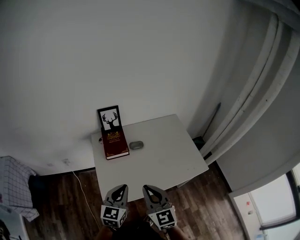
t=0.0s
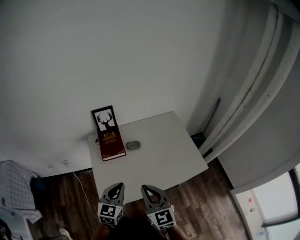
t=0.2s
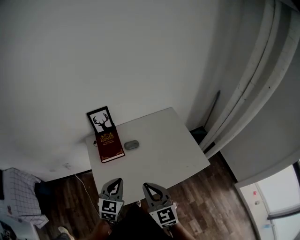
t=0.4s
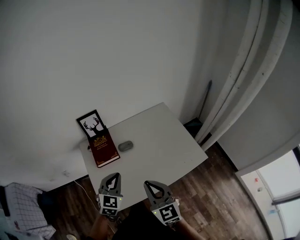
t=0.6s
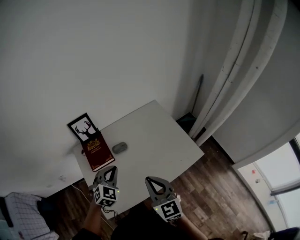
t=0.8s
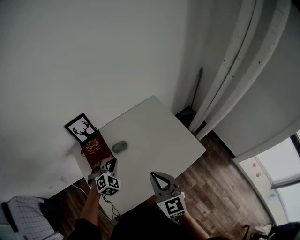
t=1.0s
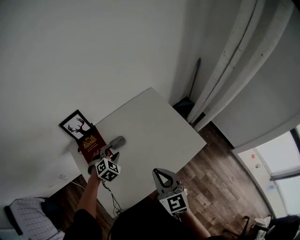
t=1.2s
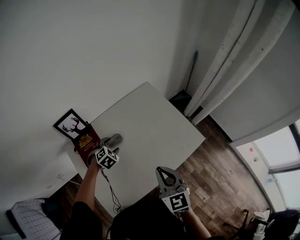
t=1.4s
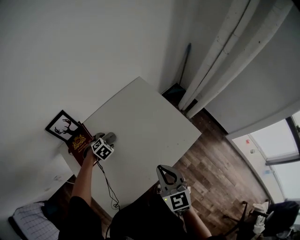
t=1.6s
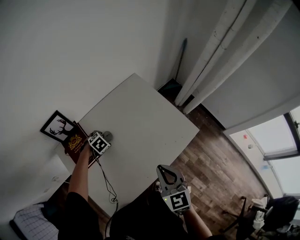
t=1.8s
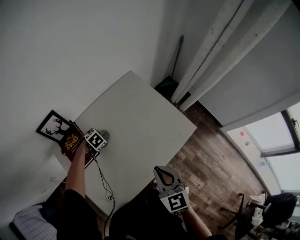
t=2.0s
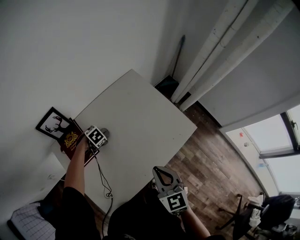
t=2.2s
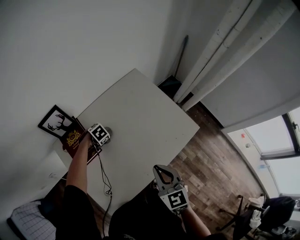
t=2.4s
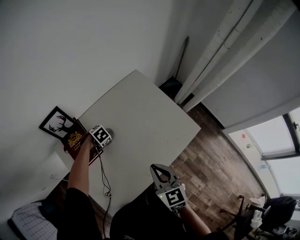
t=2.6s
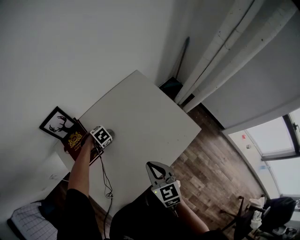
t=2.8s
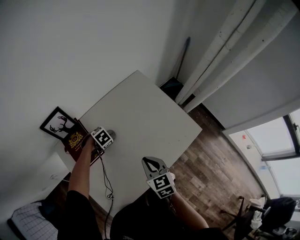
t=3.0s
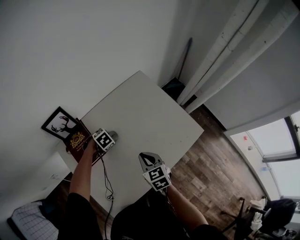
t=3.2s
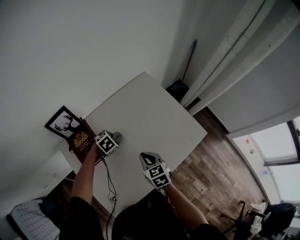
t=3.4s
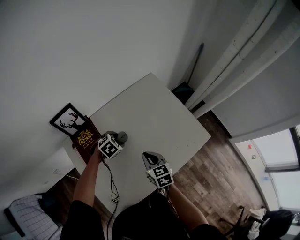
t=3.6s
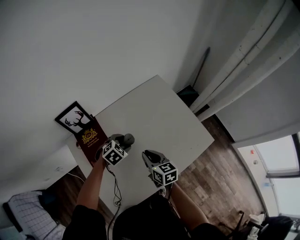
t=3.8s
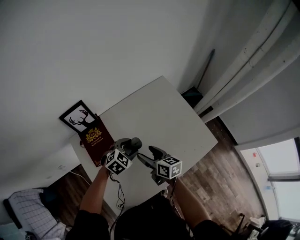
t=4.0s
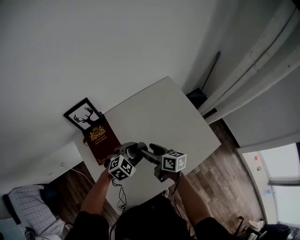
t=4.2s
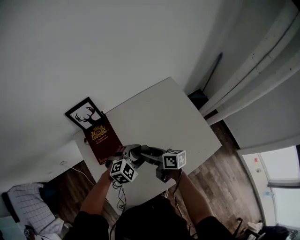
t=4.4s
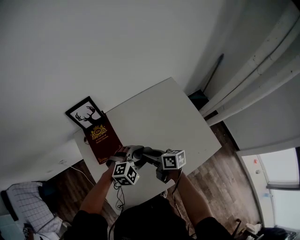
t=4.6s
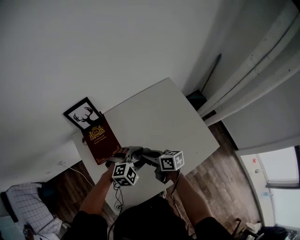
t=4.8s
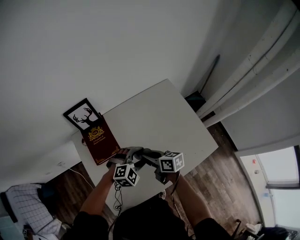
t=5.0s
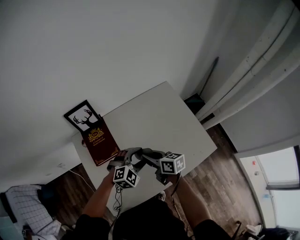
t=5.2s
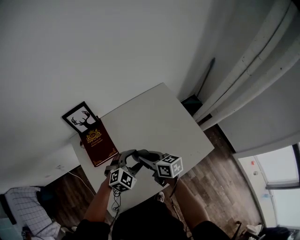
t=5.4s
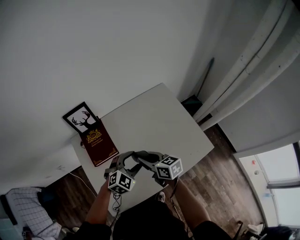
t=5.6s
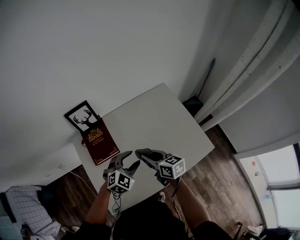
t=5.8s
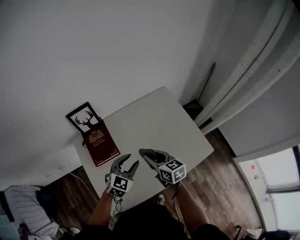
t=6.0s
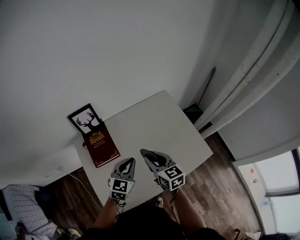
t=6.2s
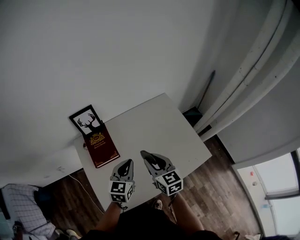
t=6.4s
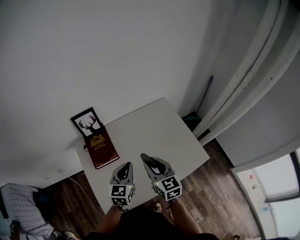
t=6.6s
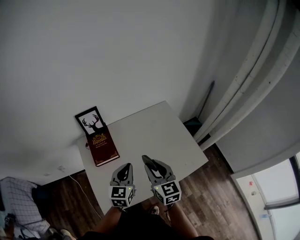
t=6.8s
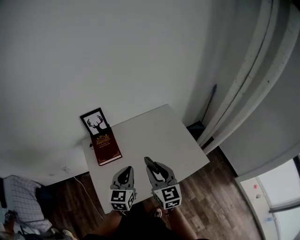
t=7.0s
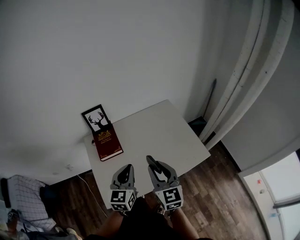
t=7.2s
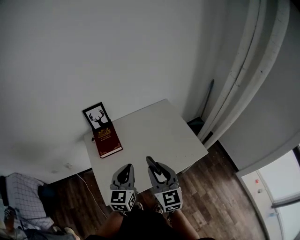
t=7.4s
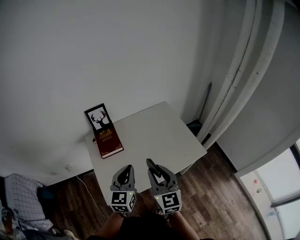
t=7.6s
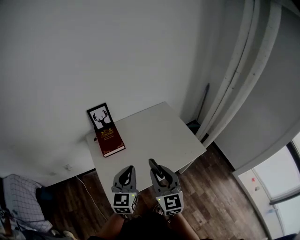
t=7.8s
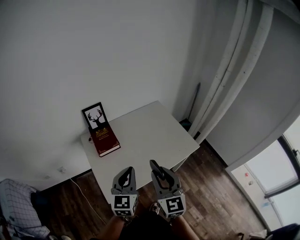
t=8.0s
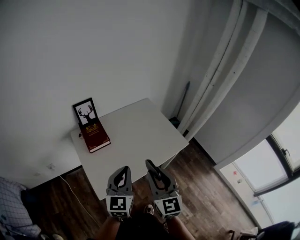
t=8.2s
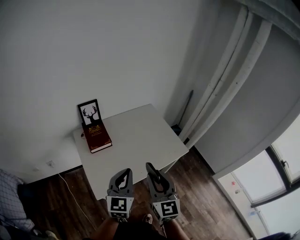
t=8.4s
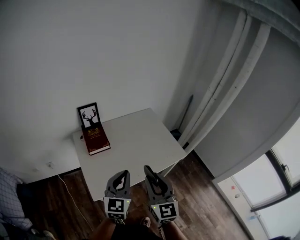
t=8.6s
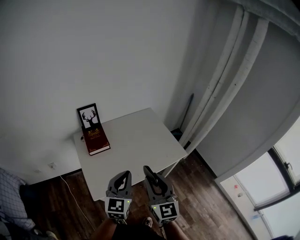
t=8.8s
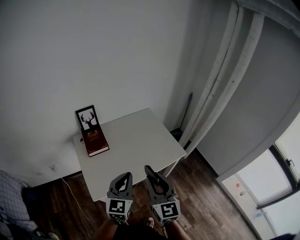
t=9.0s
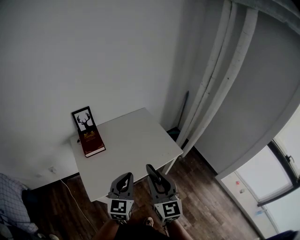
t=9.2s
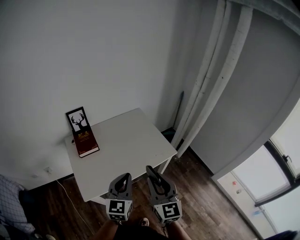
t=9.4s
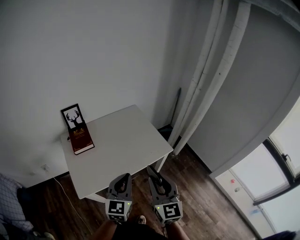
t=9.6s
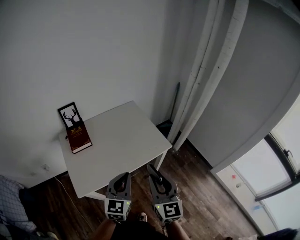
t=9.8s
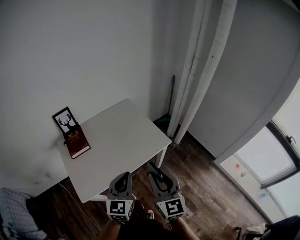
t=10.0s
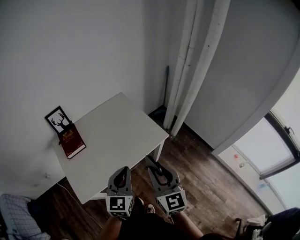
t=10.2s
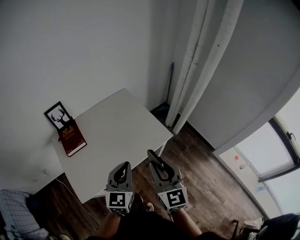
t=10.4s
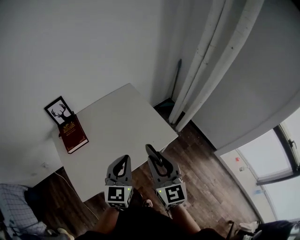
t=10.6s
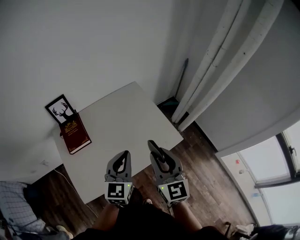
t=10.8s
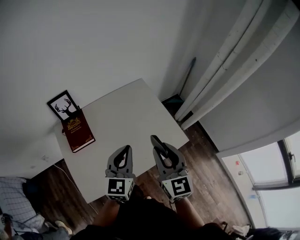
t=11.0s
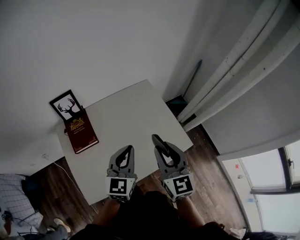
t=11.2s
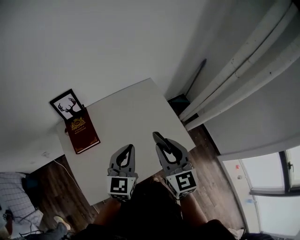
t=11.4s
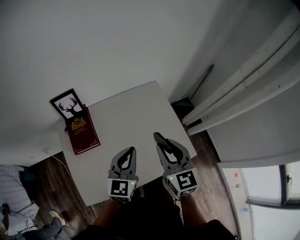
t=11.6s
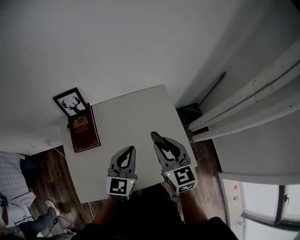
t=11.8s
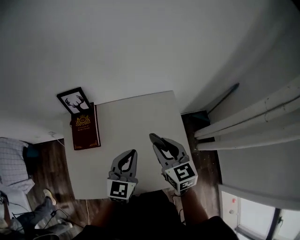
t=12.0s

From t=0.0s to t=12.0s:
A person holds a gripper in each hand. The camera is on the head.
From t=0.0s to t=1.6s: The left gripper is displaced forward and downward by roughly 40 cm, tilts its fingers some 50 degrees downward, and opens its fingers; the right gripper shifts about 20 cm to the right, forward and downward, and changes its angle by some 30 degrees.
From t=1.6s to t=3.0s: The right gripper heads downward, covering roughly 10 cm.
From t=3.0s to t=4.4s: The left gripper travels upward by roughly 15 cm, and tilts its fingers roughly 40 degrees upward, while the right gripper shifts by about 10 cm, turns by approximately 50 degrees, and opens its fingers.
From t=4.4s to t=6.0s: The grippers both shift upward by some 5 cm. The left gripper changes its angle by some 30 degrees; the right gripper rotates roughly 30 degrees, and closes its fingers.
From t=6.0s to t=7.6s: The two grippers go approximately 25 cm backward and upward. The right gripper turns by about 40 degrees; the left gripper swivels about 40 degrees, and closes its fingers.
From t=7.6s to t=9.0s: The right gripper goes about 15 cm backward, upward and to the right; the left gripper moves backward and to the right, about 10 cm.
From t=9.0s to t=10.4s: Both grippers travel together to the right and forward, roughly 15 cm.
From t=10.4s to t=12.0s: The right gripper ends up about 40 cm from where it was, and rotates about 40 degrees, while the left gripper shifts by about 30 cm.

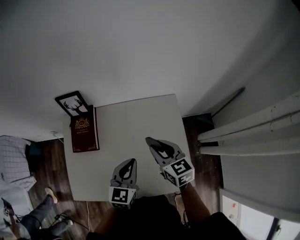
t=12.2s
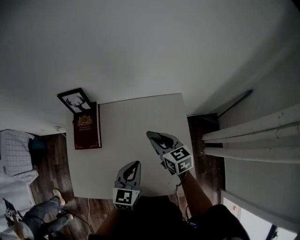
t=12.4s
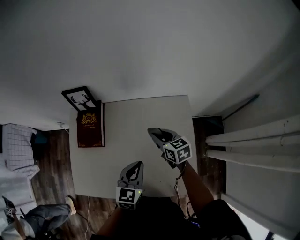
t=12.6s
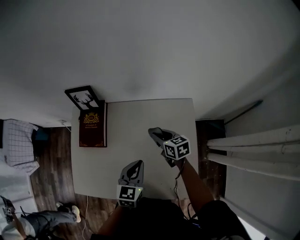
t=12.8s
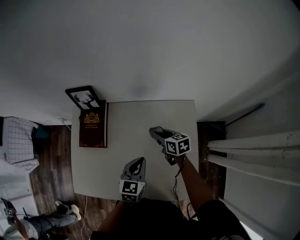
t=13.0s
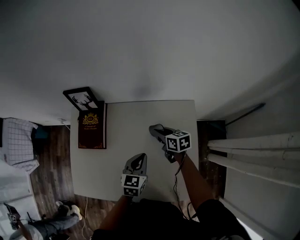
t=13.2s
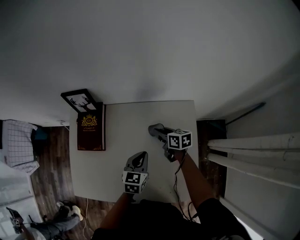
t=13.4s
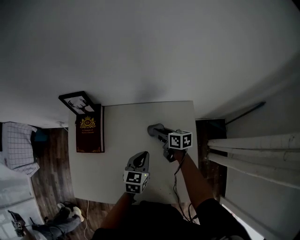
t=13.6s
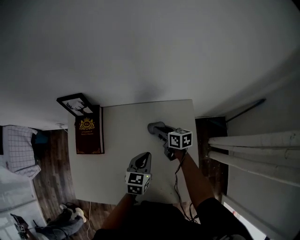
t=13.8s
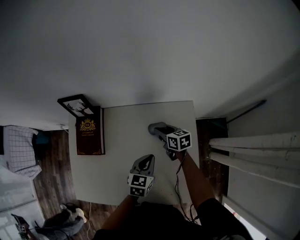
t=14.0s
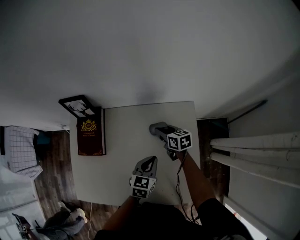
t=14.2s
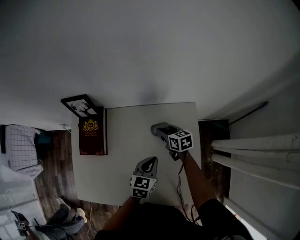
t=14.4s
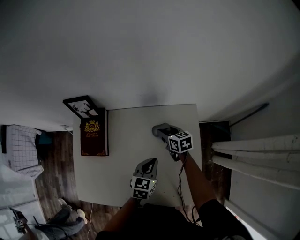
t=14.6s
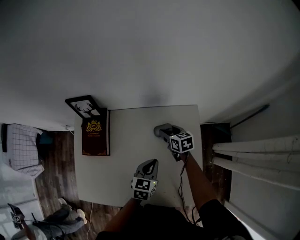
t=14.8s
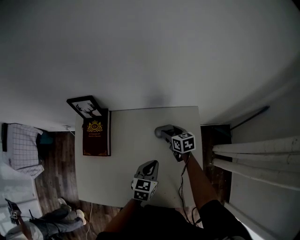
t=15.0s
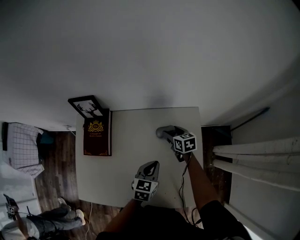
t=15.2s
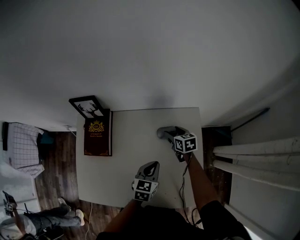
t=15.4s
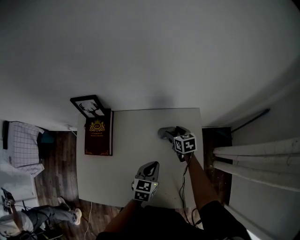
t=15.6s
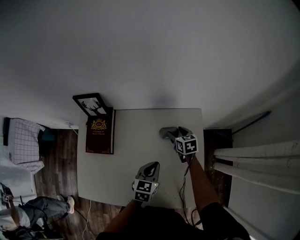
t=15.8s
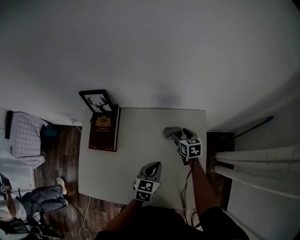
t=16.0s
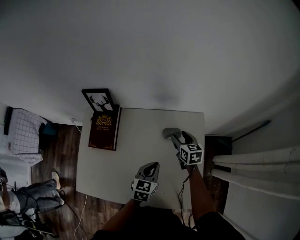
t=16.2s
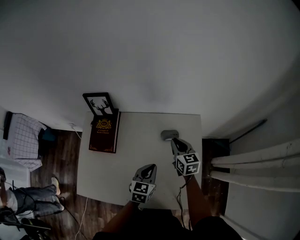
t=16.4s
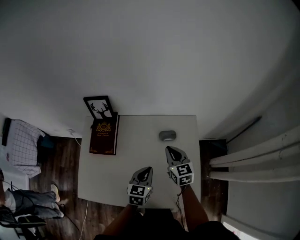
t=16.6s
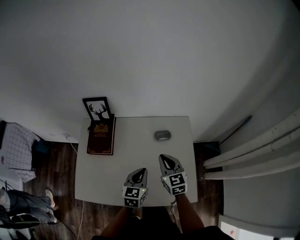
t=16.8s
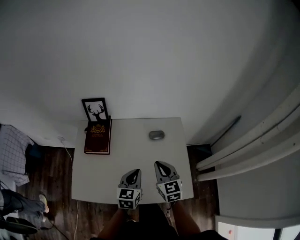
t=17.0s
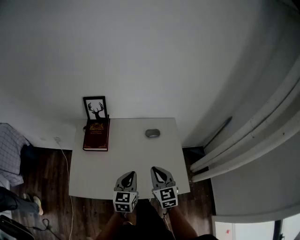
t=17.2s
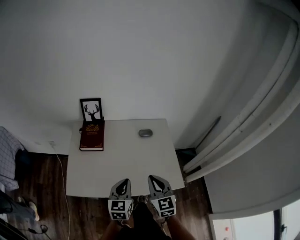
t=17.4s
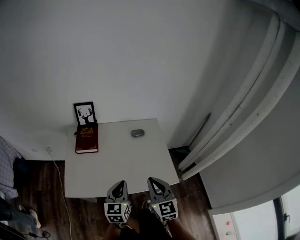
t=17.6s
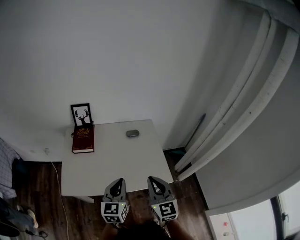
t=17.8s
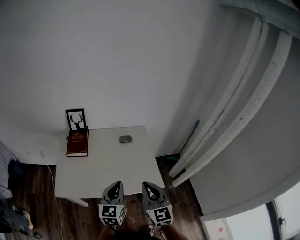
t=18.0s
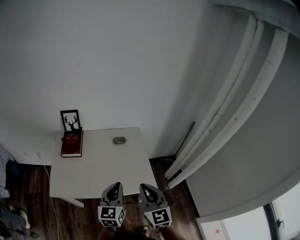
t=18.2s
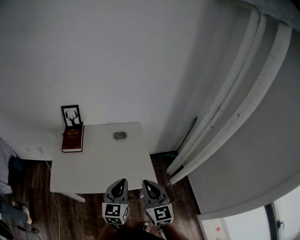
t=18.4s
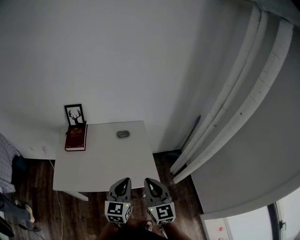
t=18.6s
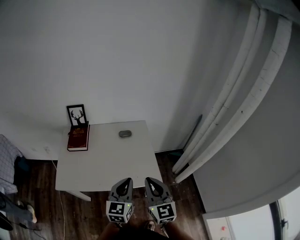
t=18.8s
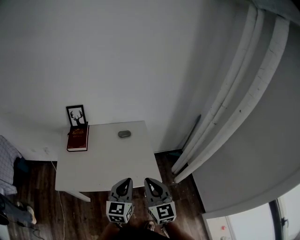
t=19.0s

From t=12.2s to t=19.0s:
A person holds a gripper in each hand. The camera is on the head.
From t=12.2s to t=13.6s: The left gripper goes some 15 cm downward and forward; the right gripper shifts roughly 25 cm downward and forward, and changes its angle by some 40 degrees.
From t=13.6s to t=15.0s: The right gripper rotates some 20 degrees, and opens.
From t=15.0s to t=16.2s: The right gripper is displaced upward by approximately 5 cm.
From t=16.2s to t=17.6s: The left gripper is displaced backward and upward by approximately 30 cm, and swivels roughly 20 degrees; the right gripper moves backward and upward, about 50 cm, rotates some 40 degrees, and closes up.
From t=17.6s to t=19.0s: The right gripper heads to the right, backward and upward, covering some 15 cm. Meanwhile the left gripper shifts approximately 15 cm to the right and upward.

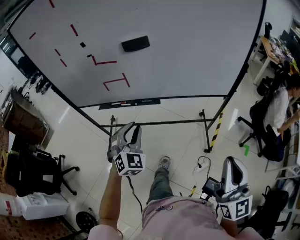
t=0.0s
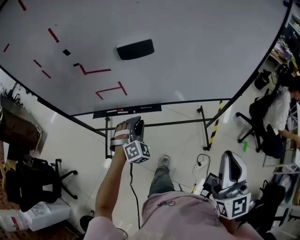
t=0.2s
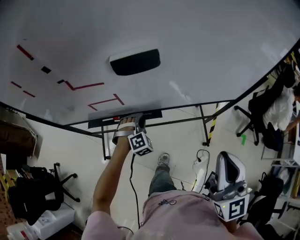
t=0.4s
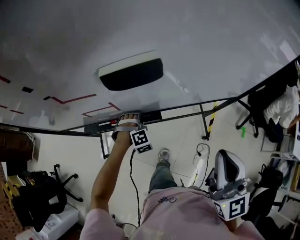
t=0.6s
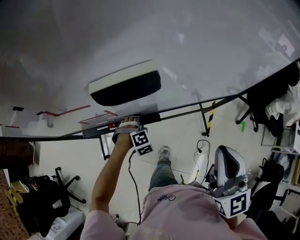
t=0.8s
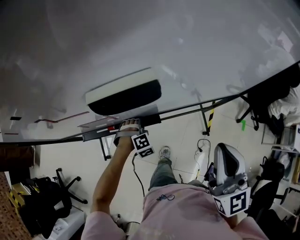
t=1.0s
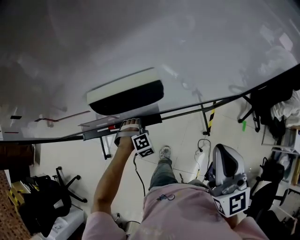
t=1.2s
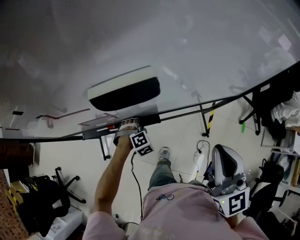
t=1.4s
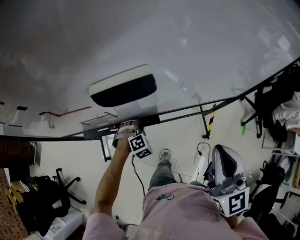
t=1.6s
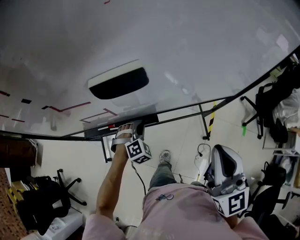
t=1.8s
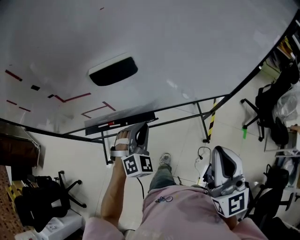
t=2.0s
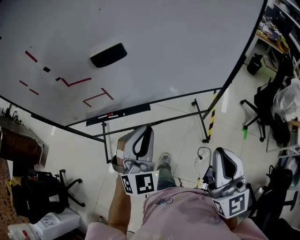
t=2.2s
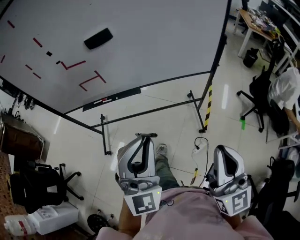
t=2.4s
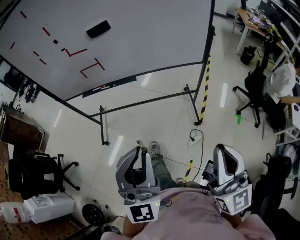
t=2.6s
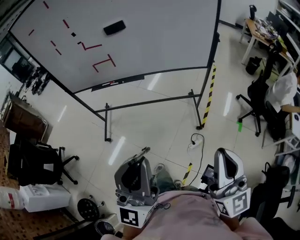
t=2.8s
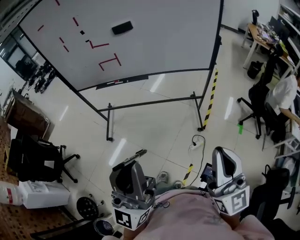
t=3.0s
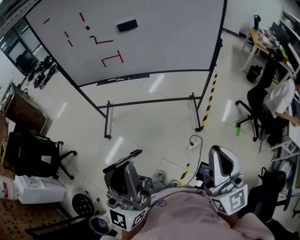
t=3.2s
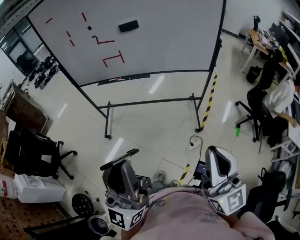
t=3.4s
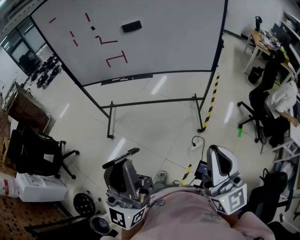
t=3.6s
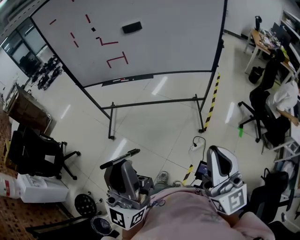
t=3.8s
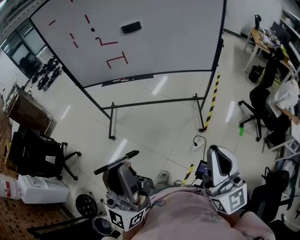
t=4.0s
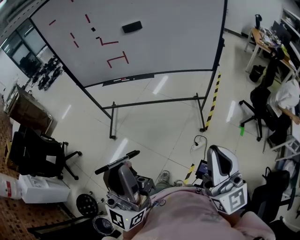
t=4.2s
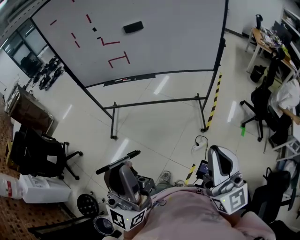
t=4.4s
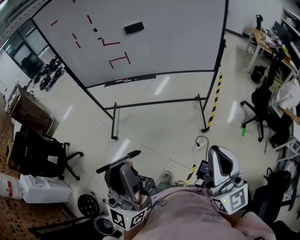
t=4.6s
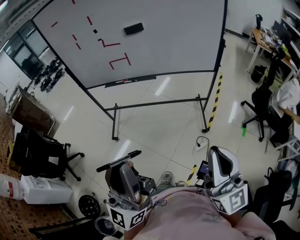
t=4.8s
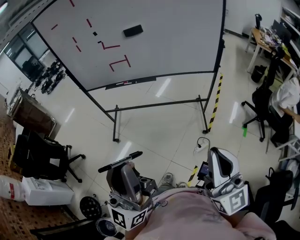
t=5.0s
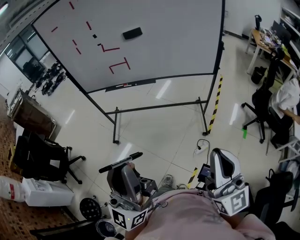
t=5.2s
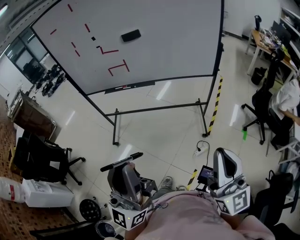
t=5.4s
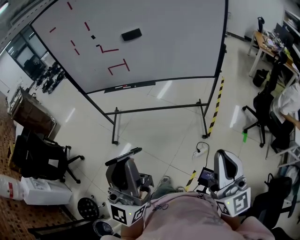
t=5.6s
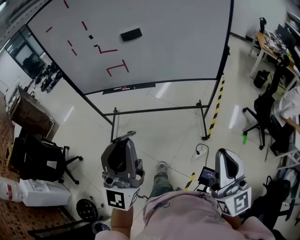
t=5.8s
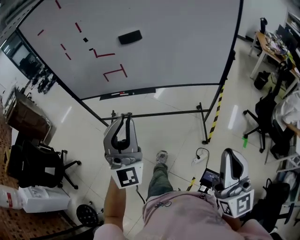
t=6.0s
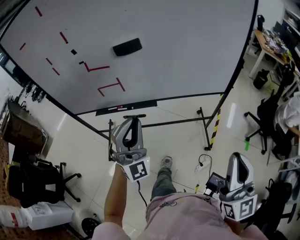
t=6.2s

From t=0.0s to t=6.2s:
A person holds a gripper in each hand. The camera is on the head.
From t=0.0s to t=1.6s: The right gripper goes about 30 cm forward. The left gripper goes some 35 cm forward and downward, and tips its fingers downward by about 40 degrees.
From t=1.6s to t=3.2s: Both grippers are carried backward, some 60 cm. The left gripper travels upward by about 50 cm, and tips its fingers upward by roughly 90 degrees; the right gripper rotates roughly 20 degrees.
From t=3.2s to t=4.6s: The grippers make only small movements.
From t=4.6s to t=6.2s: The right gripper travels forward by approximately 25 cm, while the left gripper heads forward, covering roughly 40 cm, and rotates around the line of its fingers by some 60 degrees, clockwise from behind.
